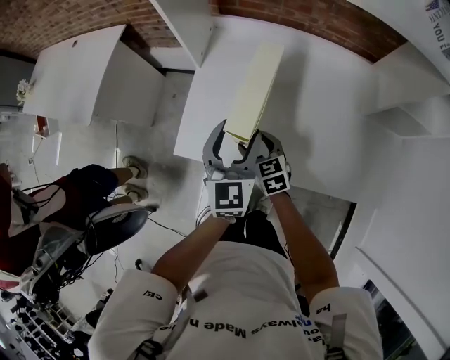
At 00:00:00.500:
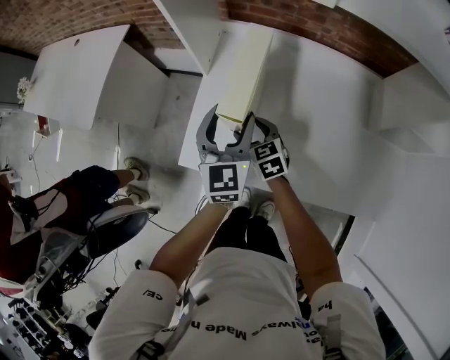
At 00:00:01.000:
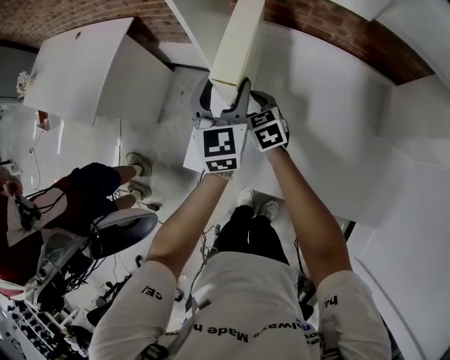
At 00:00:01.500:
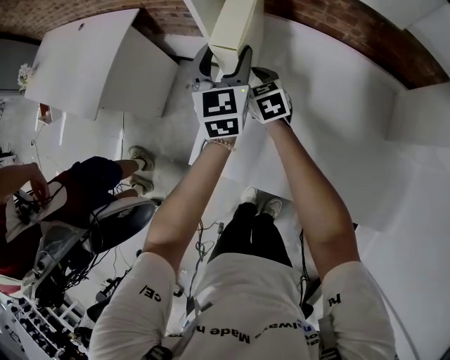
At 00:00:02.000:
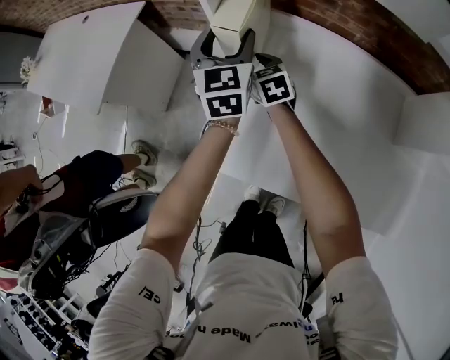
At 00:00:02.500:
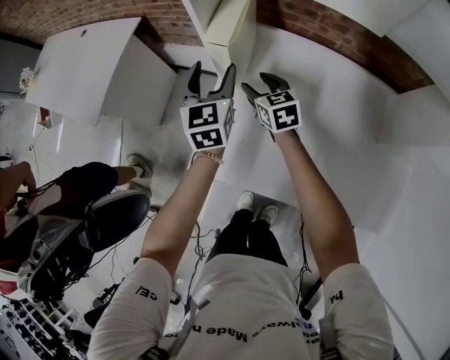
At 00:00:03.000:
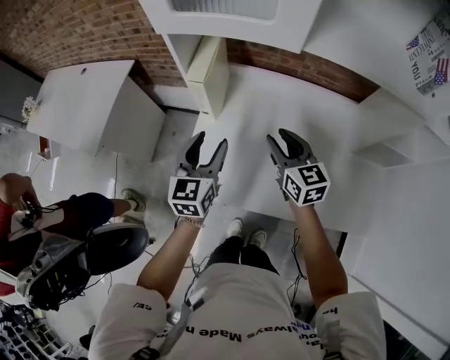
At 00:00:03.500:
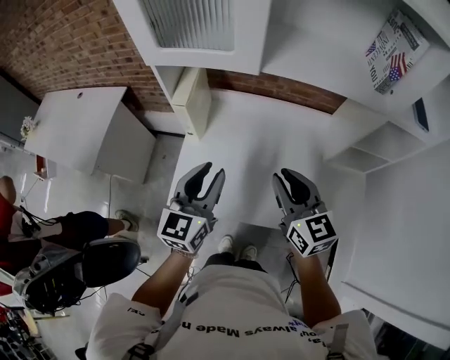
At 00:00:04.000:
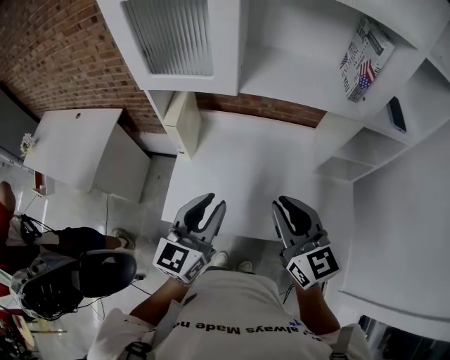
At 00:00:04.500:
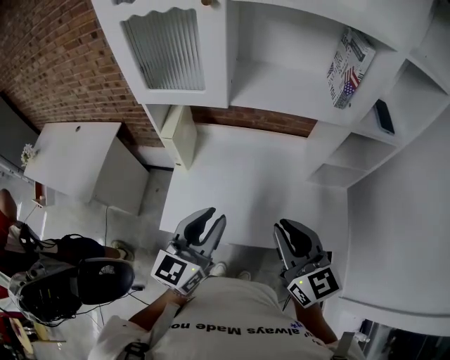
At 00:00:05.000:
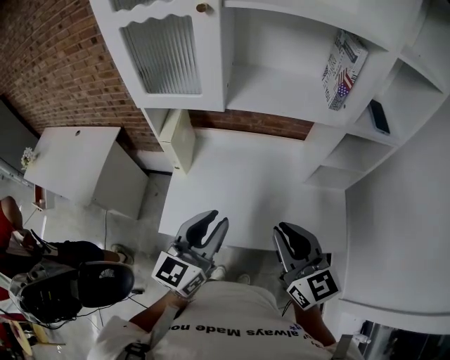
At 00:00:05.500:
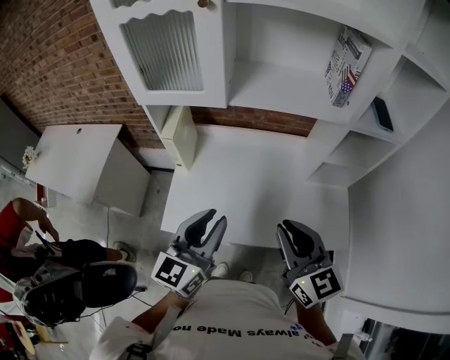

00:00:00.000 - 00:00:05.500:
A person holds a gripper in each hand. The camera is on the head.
00:00:00.000 - 00:00:02.000: Both grippers move forward, some 25 cm.
00:00:02.000 - 00:00:03.500: The right gripper travels backward, upward and to the right by about 50 cm, rotates about 30 degrees, and closes its fingers. Meanwhile the left gripper goes some 35 cm backward and upward, swivels roughly 30 degrees, and closes up.
00:00:03.500 - 00:00:05.500: The two grippers go about 15 cm backward, upward and to the right.

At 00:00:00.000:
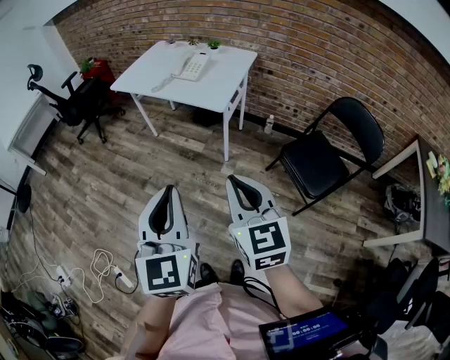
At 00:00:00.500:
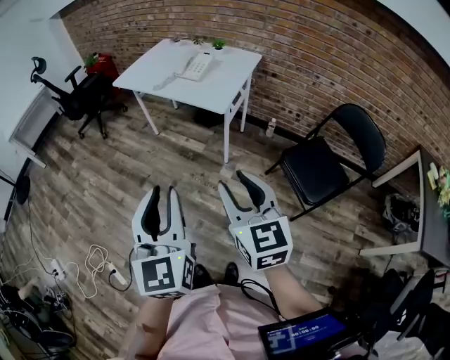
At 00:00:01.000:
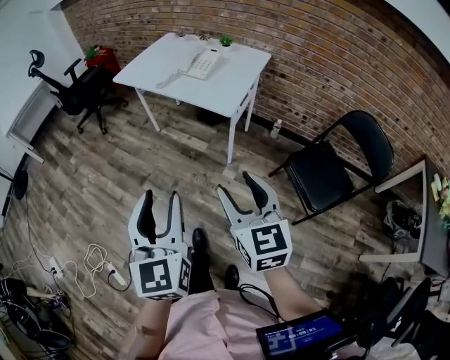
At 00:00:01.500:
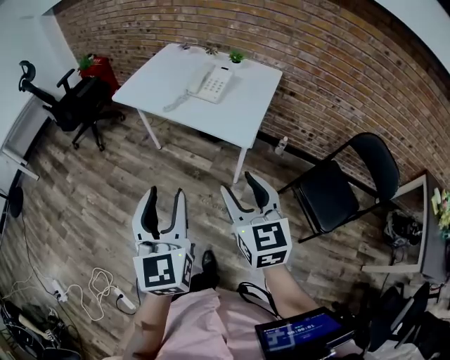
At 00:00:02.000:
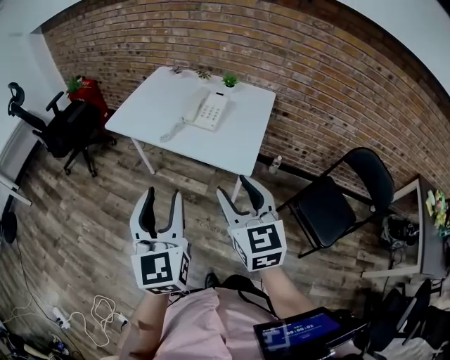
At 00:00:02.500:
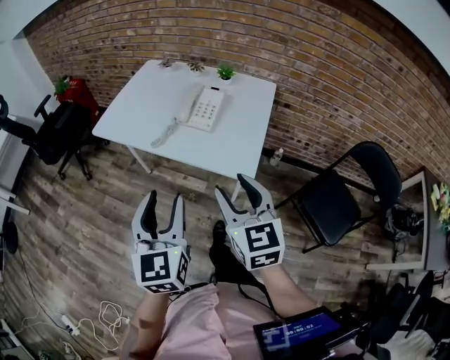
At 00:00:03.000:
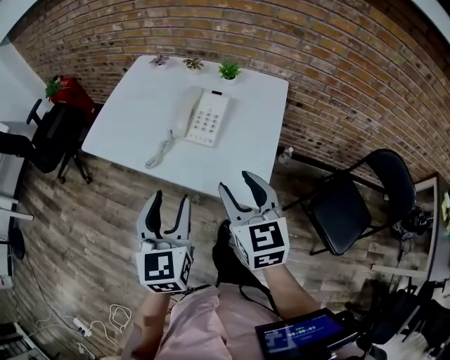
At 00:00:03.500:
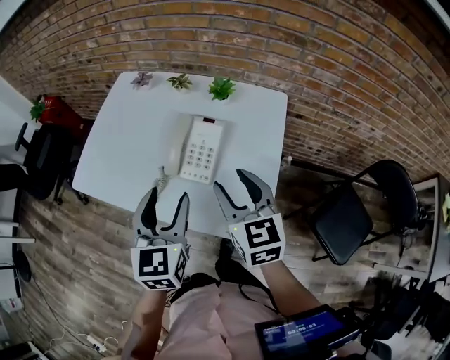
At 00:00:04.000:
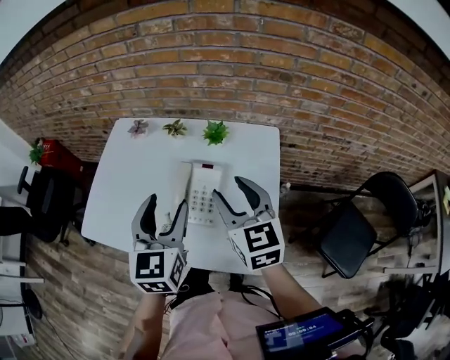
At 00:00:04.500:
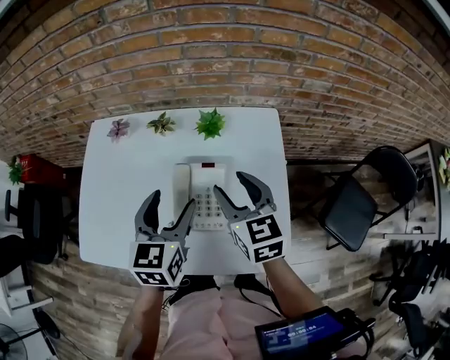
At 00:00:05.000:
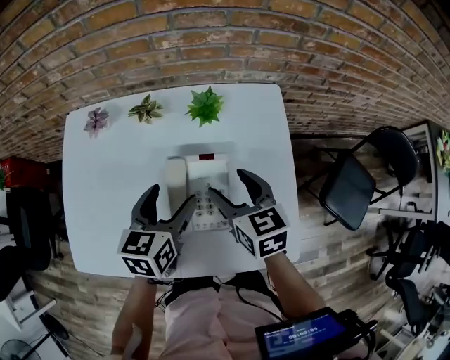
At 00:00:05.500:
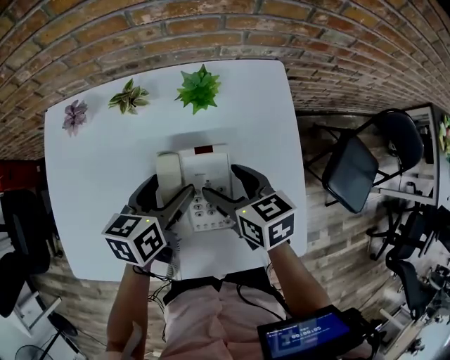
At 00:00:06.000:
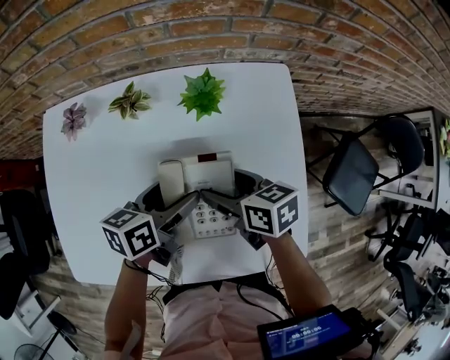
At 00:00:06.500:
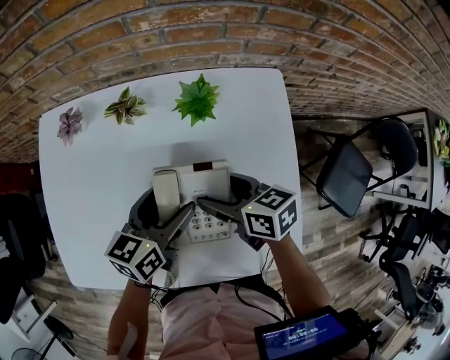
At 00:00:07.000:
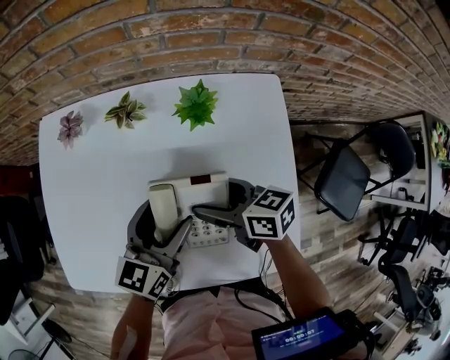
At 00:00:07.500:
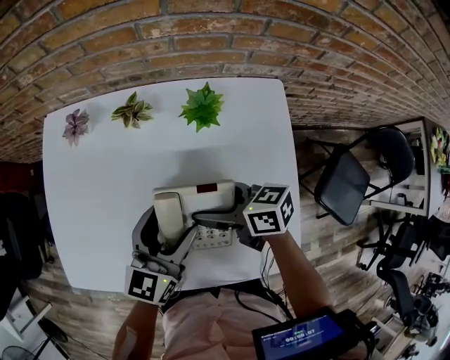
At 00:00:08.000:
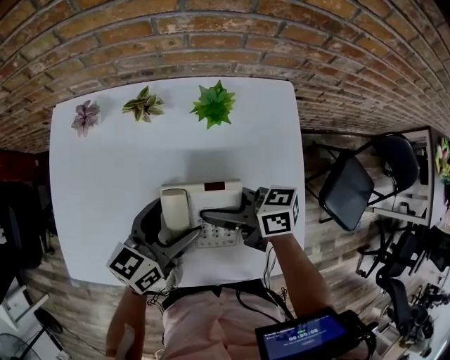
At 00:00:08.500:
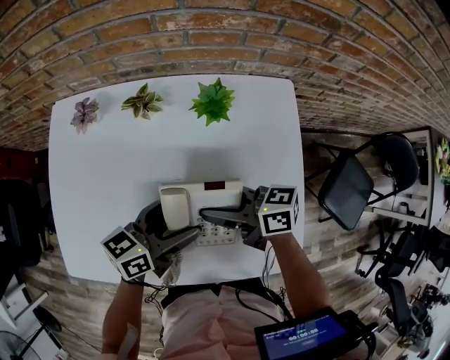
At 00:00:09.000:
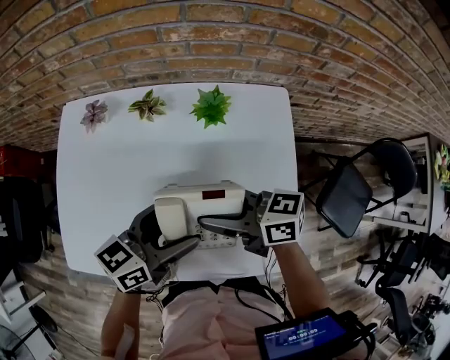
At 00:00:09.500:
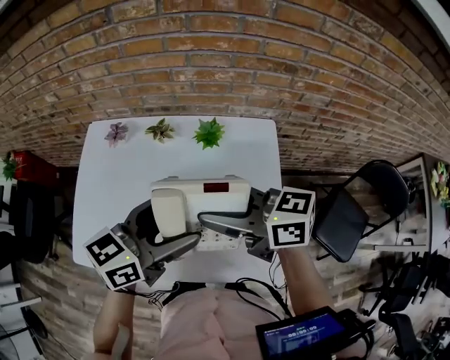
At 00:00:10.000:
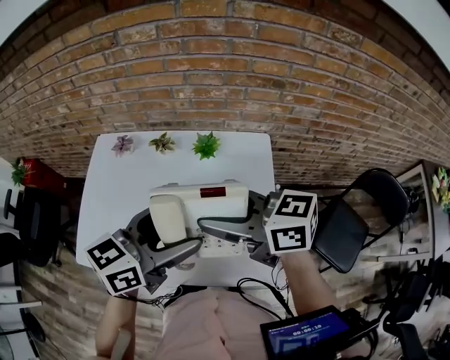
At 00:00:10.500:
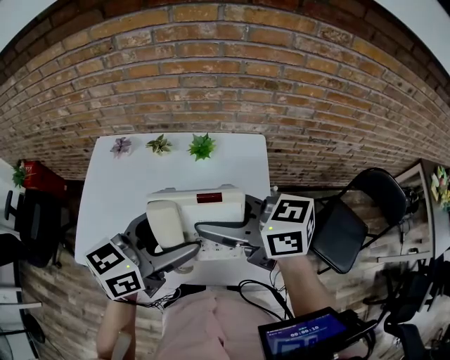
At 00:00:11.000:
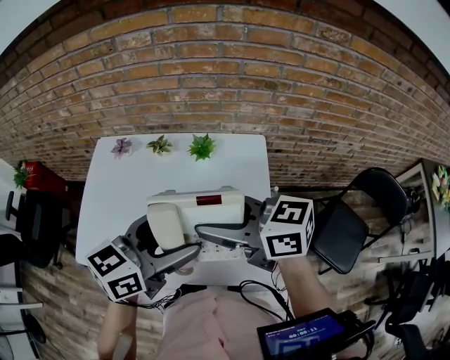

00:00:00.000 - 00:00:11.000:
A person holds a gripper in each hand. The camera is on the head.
00:00:00.000 - 00:00:02.000: The grippers both shift forward by roughly 30 cm. The left gripper opens its fingers. Meanwhile the right gripper opens.
00:00:02.000 - 00:00:03.500: The grippers both shift forward by about 35 cm. The left gripper changes its angle by approximately 20 degrees.
00:00:03.500 - 00:00:05.500: The right gripper moves downward and forward, approximately 20 cm, rotates some 30 degrees, and opens its fingers, while the left gripper is displaced forward and downward by roughly 25 cm, and changes its angle by about 50 degrees.
00:00:05.500 - 00:00:07.500: The right gripper changes its angle by about 30 degrees. Meanwhile the left gripper changes place by about 5 cm, and swivels some 30 degrees.
00:00:07.500 - 00:00:09.000: The left gripper changes its angle by approximately 30 degrees. The right gripper shifts about 10 cm upward, and closes.
00:00:09.000 - 00:00:11.000: The two grippers go about 15 cm upward.

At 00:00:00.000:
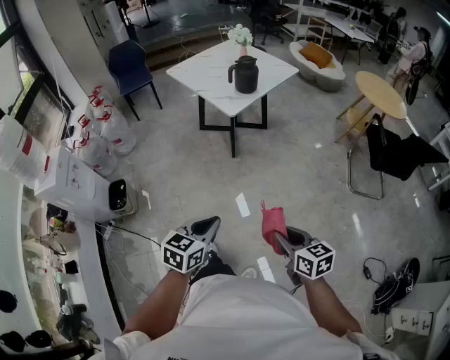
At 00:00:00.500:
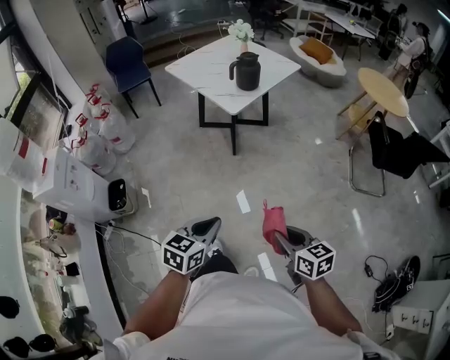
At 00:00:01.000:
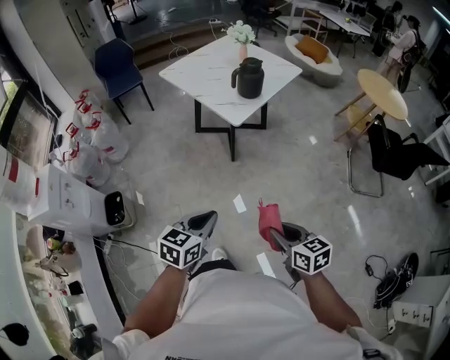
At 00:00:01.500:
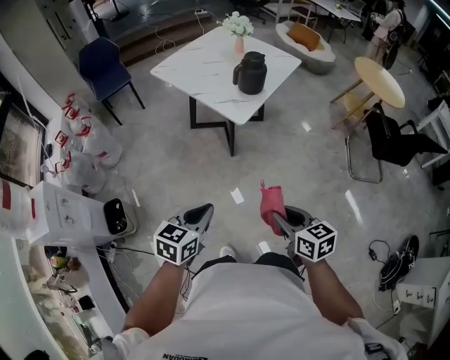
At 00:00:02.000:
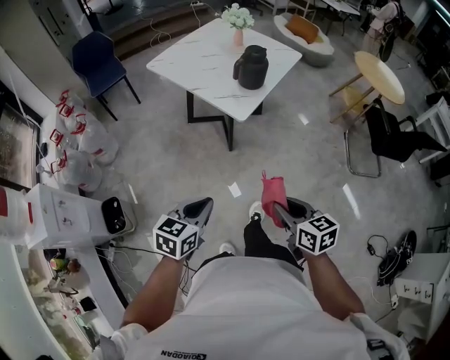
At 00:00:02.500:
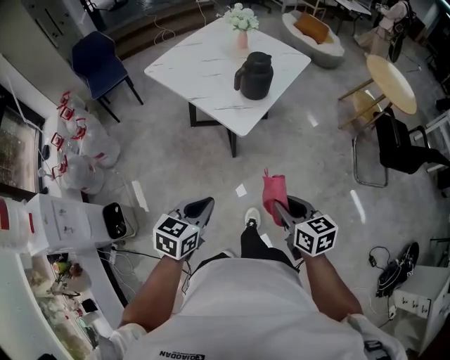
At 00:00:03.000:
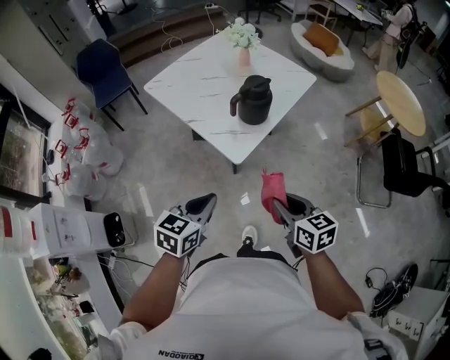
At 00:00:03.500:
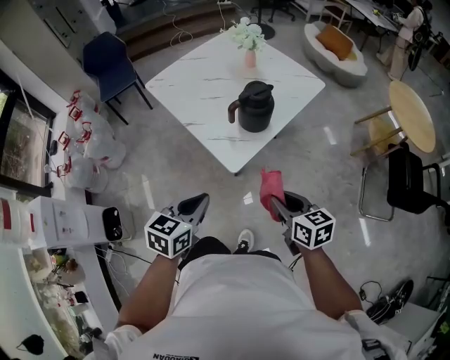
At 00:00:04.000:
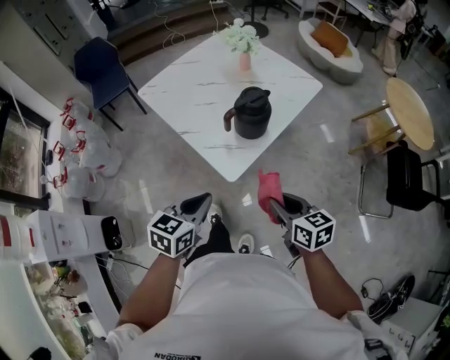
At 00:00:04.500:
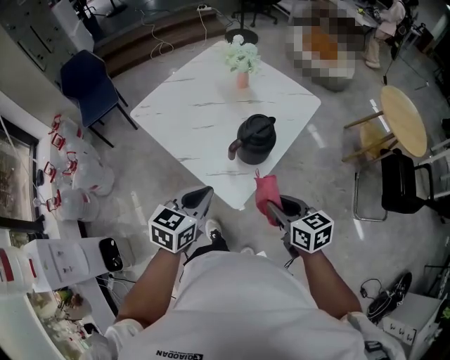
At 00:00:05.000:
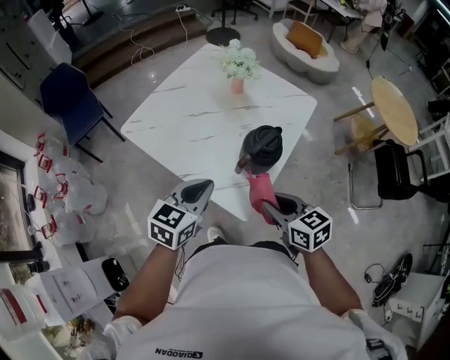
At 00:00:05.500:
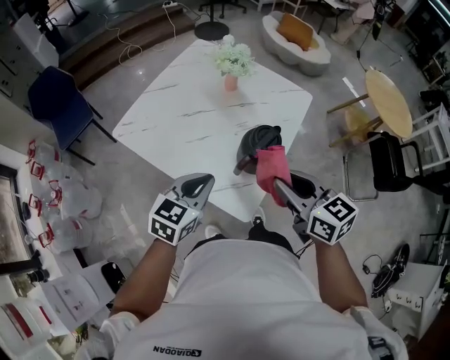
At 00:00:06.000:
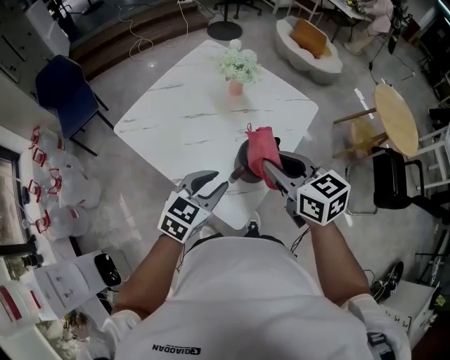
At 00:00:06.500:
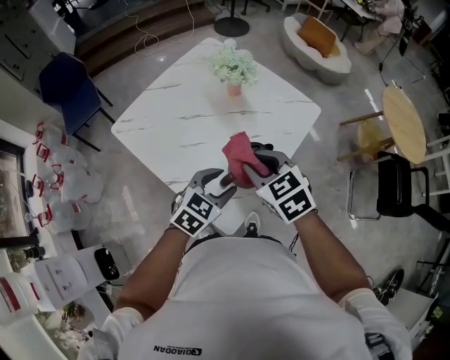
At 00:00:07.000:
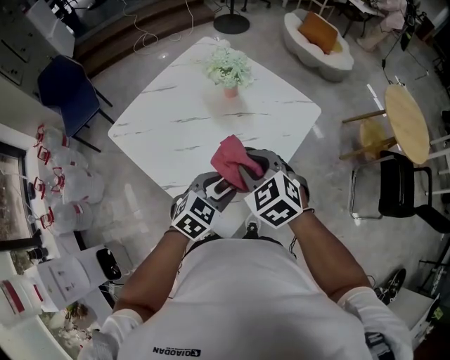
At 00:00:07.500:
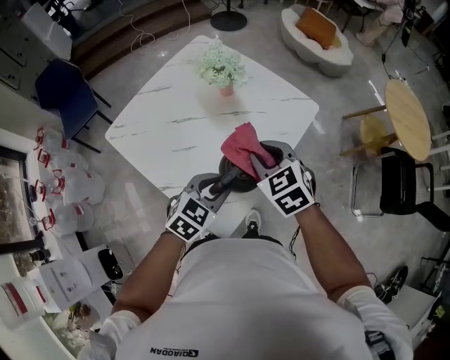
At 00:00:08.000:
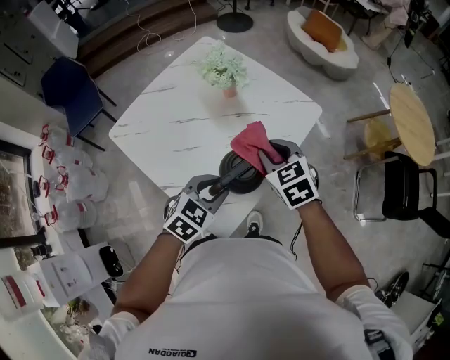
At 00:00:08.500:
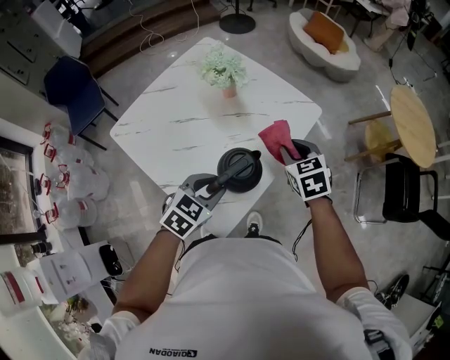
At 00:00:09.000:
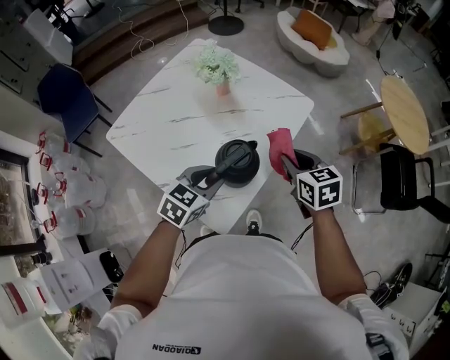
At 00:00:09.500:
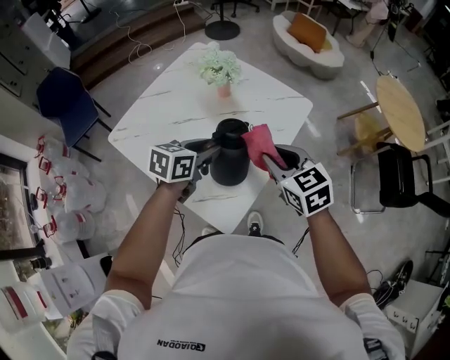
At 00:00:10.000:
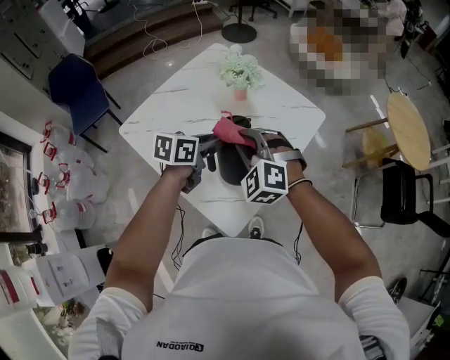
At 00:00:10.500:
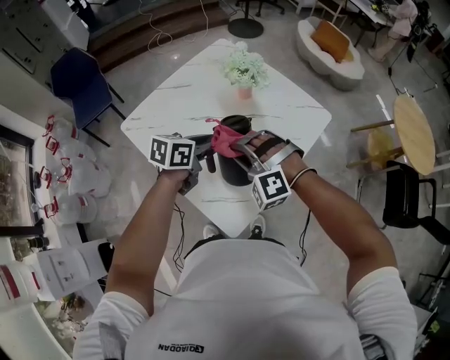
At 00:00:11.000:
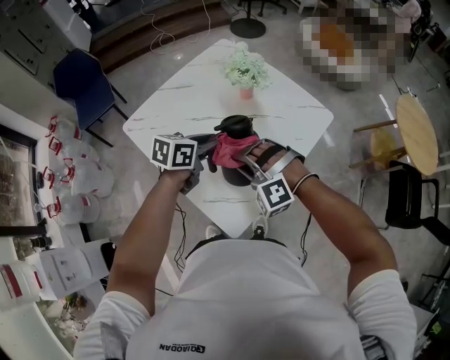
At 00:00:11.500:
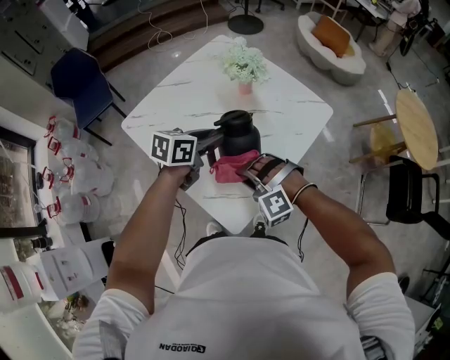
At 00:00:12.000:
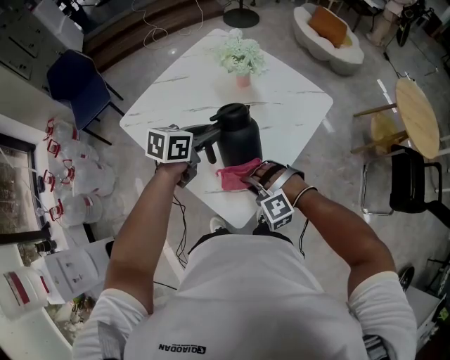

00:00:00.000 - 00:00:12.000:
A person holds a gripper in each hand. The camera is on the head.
00:00:00.000 - 00:00:02.000: The two grippers go about 25 cm forward and to the left.
00:00:02.000 - 00:00:04.000: The grippers both shift forward by roughly 30 cm.
00:00:04.000 - 00:00:06.000: The left gripper goes approximately 25 cm forward, rotates about 20 degrees, and opens up. The right gripper travels forward and upward by approximately 30 cm.
00:00:06.000 - 00:00:08.000: The right gripper is displaced forward, downward and to the right by roughly 15 cm, and turns by approximately 30 degrees, while the left gripper is displaced to the right and downward by some 10 cm, and opens, then closes again.
00:00:08.000 - 00:00:10.000: The left gripper shifts about 15 cm forward and to the left, and turns by some 40 degrees. The right gripper heads to the left, covering roughly 10 cm, and rotates around the line of its fingers by some 50 degrees, counterclockwise from behind.
00:00:10.000 - 00:00:12.000: The right gripper goes about 20 cm downward and backward, and changes its angle by roughly 40 degrees.
